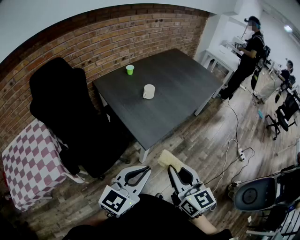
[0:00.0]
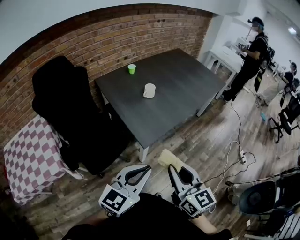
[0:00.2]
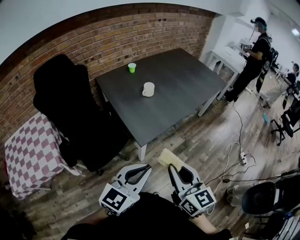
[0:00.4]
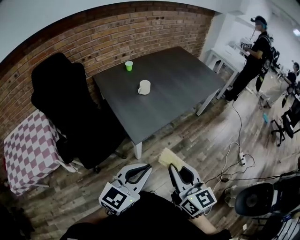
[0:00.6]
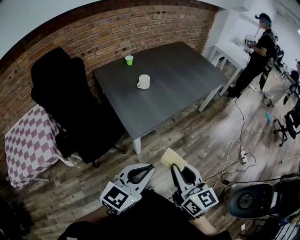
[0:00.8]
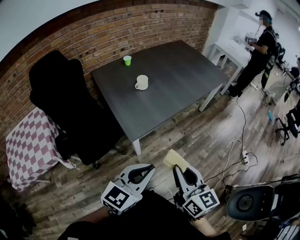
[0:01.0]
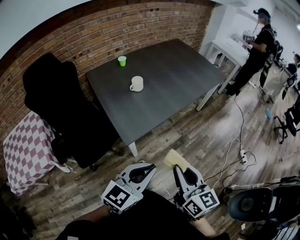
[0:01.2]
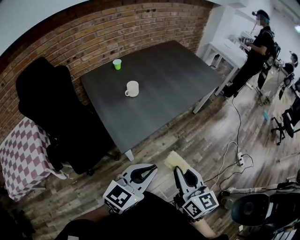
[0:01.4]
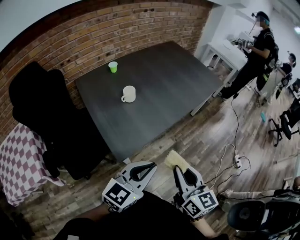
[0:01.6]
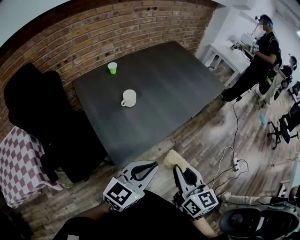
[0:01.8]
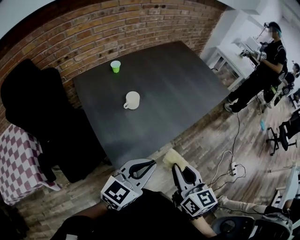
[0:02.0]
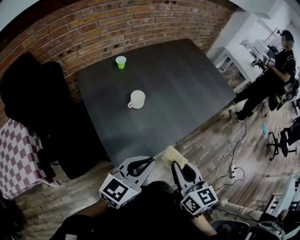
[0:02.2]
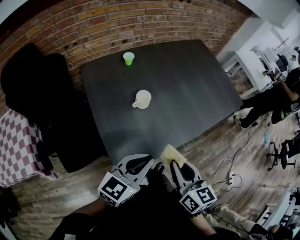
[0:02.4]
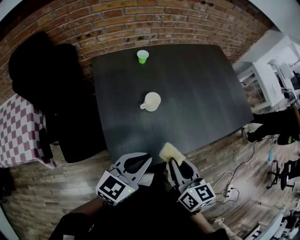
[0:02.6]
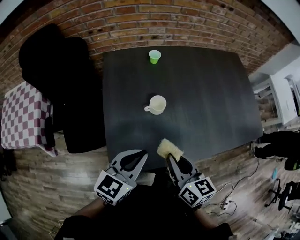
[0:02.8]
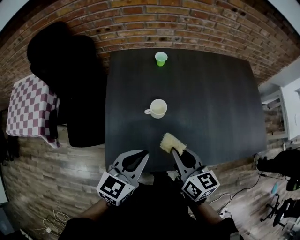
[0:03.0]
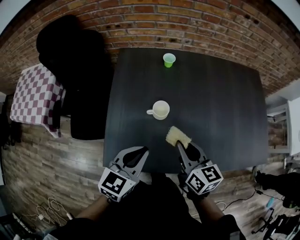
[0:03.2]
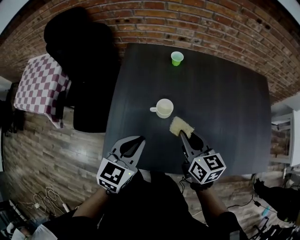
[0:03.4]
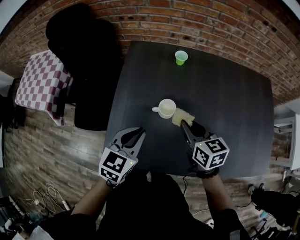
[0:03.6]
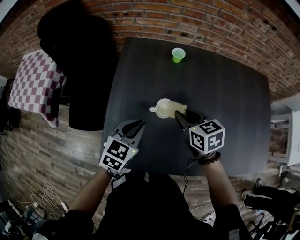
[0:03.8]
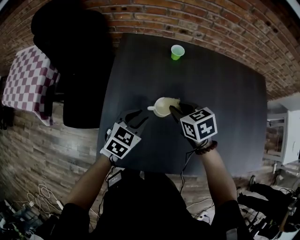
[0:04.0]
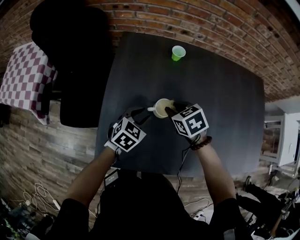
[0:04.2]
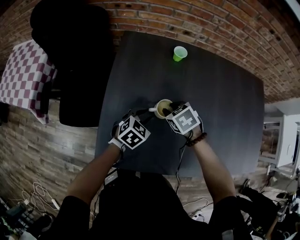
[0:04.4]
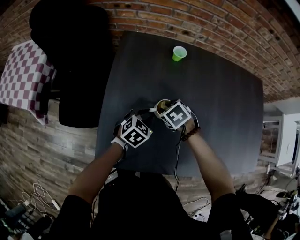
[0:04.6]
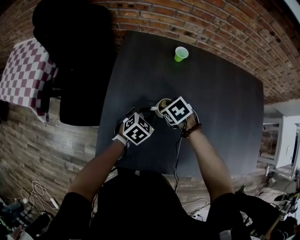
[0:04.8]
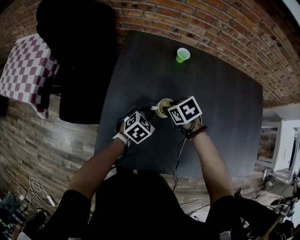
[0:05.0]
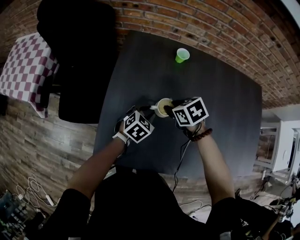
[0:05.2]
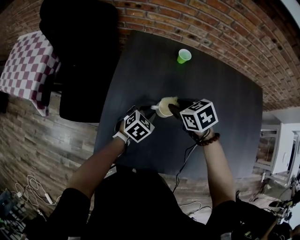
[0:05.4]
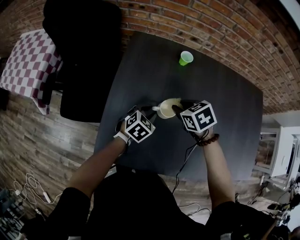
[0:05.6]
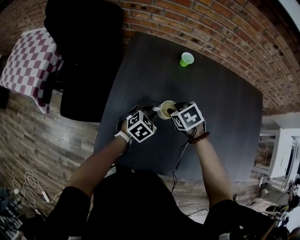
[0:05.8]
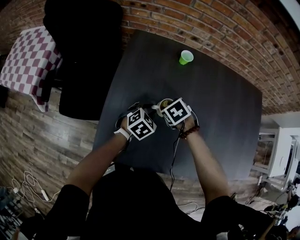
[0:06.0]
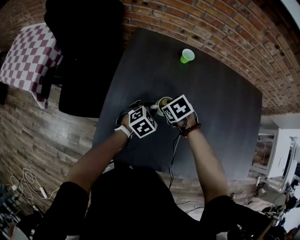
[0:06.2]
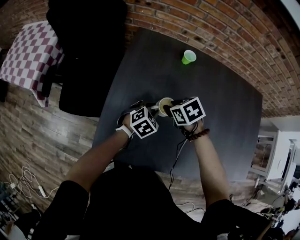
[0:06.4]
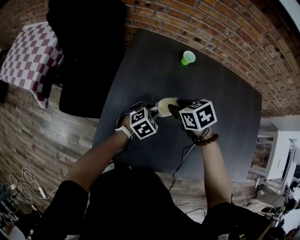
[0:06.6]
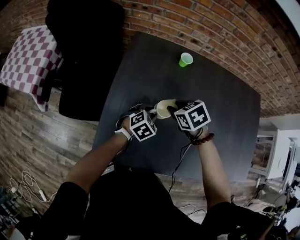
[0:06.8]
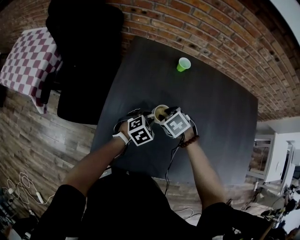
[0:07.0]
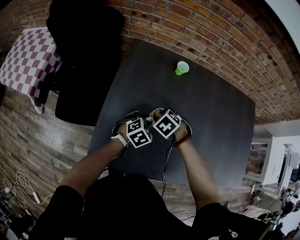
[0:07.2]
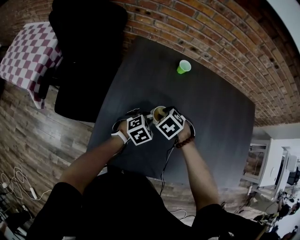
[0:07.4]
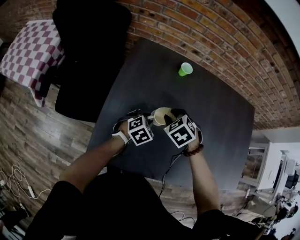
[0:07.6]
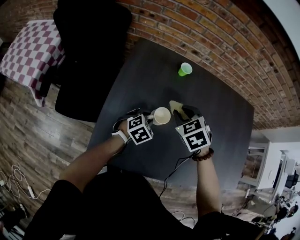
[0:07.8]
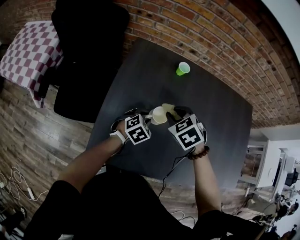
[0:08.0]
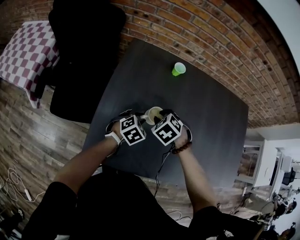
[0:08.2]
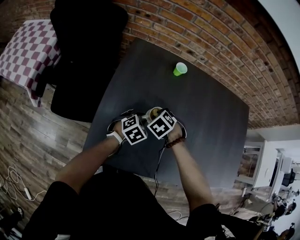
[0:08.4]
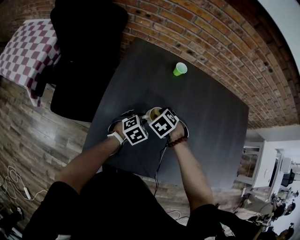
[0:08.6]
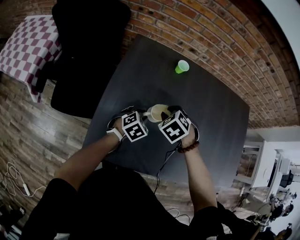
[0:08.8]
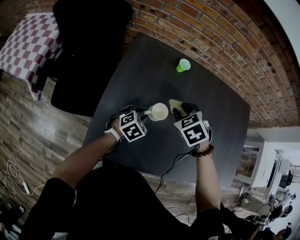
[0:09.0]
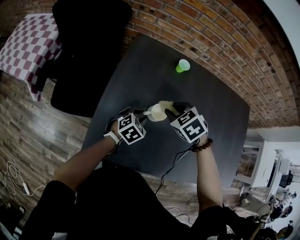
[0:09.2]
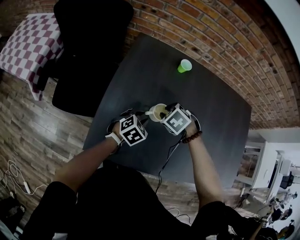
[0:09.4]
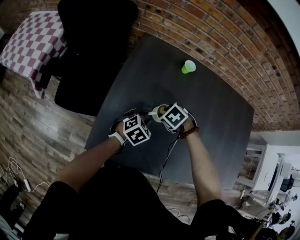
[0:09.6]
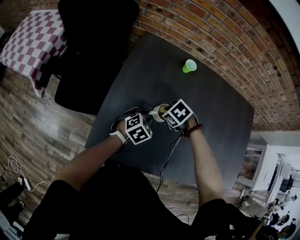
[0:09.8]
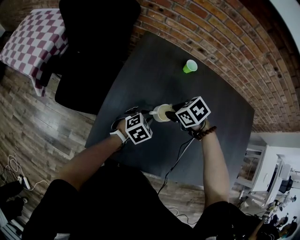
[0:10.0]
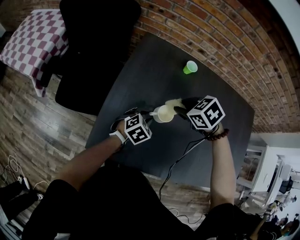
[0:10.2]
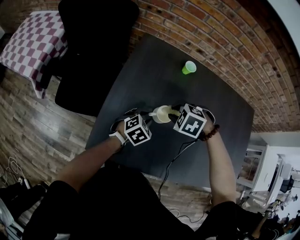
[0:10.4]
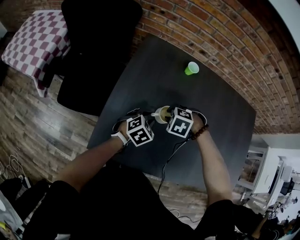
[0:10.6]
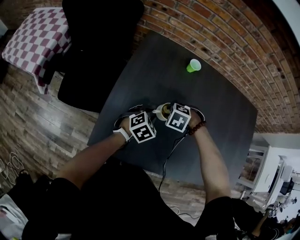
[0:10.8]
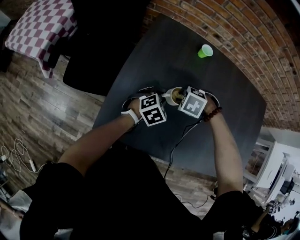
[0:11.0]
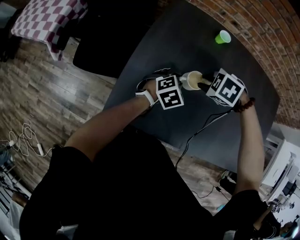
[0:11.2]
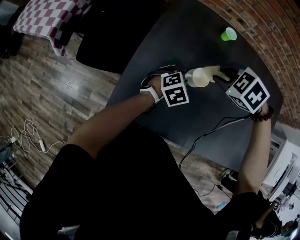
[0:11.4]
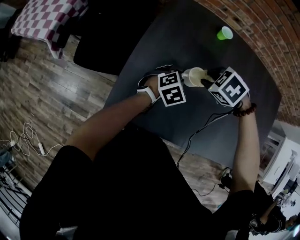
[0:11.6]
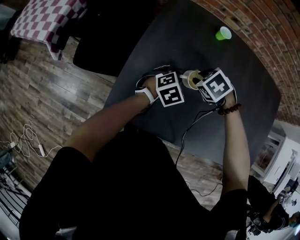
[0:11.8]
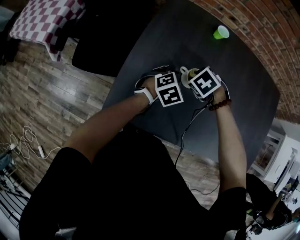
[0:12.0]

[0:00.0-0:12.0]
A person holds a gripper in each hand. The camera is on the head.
0:00.0 to 0:01.6: The right gripper moves to the right and forward, roughly 25 cm. Meanwhile the left gripper goes about 25 cm forward and to the right.
0:01.6 to 0:03.0: The right gripper shifts by roughly 40 cm, and turns by roughly 40 degrees. Meanwhile the left gripper ends up roughly 35 cm from where it was, and swivels about 40 degrees.
0:03.0 to 0:04.4: The left gripper travels downward and forward by roughly 25 cm, swivels roughly 30 degrees, and opens, while the right gripper heads forward and downward, covering some 25 cm, and points its fingers roughly 50 degrees further downward.
0:04.4 to 0:06.0: The right gripper goes upward and returns, some 5 cm each way.
0:06.0 to 0:07.6: The right gripper swings up and down, approximately 10 cm each way, with 2 reversals.
0:07.6 to 0:09.0: The right gripper moves up and down over roughly 15 cm, changing direction 2 times.
0:09.0 to 0:10.4: The right gripper moves up and down over about 15 cm, changing direction 2 times, and rotates about 40 degrees.
0:10.4 to 0:12.0: The right gripper goes up and down, about 10 cm each way, reversing 2 times, and changes its angle by some 30 degrees.

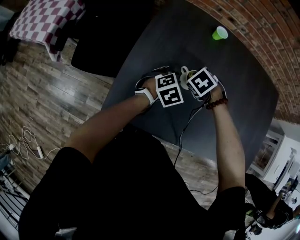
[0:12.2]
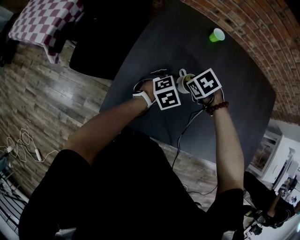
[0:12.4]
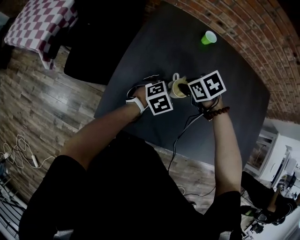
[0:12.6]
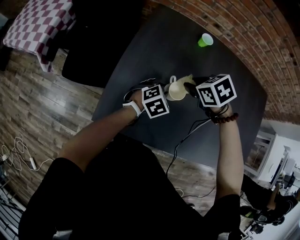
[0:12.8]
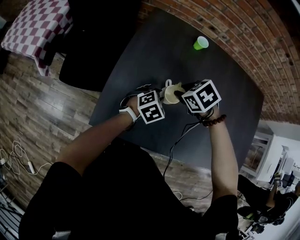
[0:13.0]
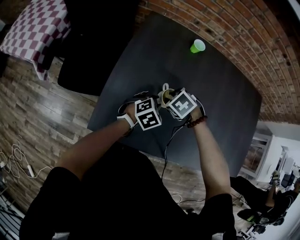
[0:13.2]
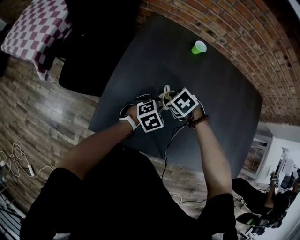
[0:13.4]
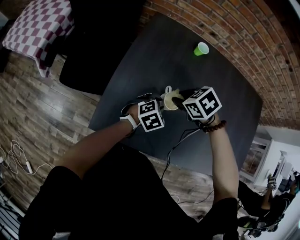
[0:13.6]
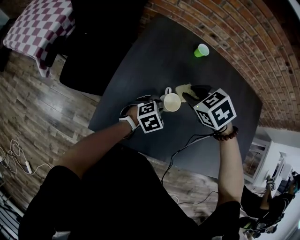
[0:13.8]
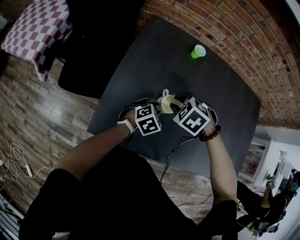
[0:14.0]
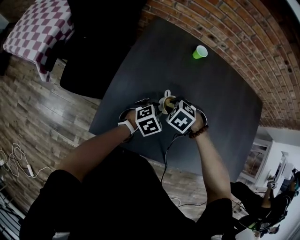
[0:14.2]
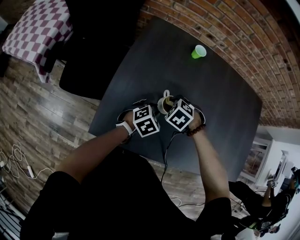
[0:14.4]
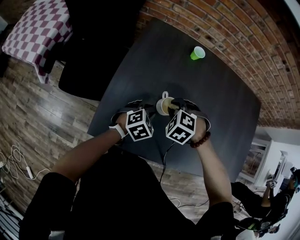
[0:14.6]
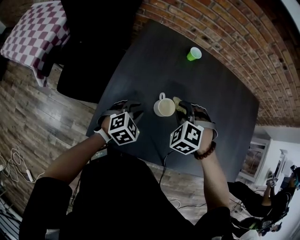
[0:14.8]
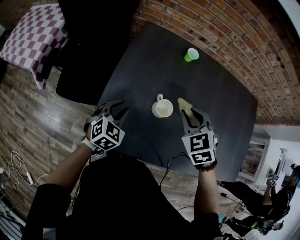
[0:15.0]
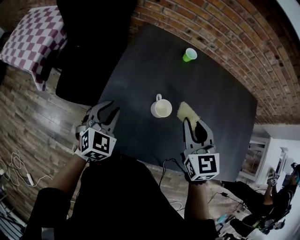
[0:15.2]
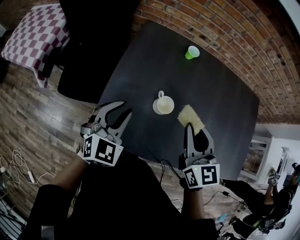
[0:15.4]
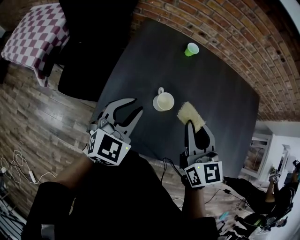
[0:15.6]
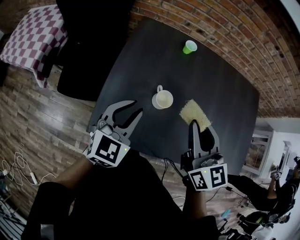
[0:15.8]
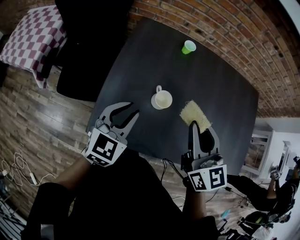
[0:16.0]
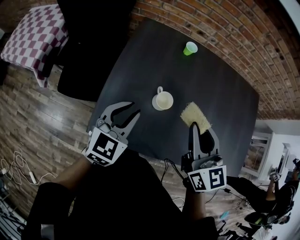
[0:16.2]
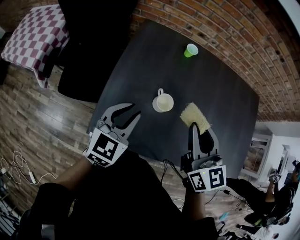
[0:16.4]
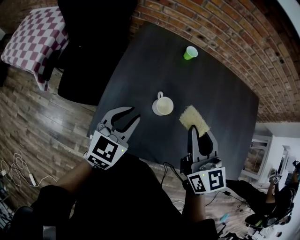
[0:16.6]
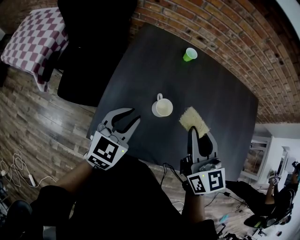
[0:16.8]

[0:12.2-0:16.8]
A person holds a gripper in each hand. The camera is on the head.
0:12.2 to 0:13.8: The right gripper swings up and down, about 15 cm each way, with 2 reversals.
0:13.8 to 0:15.2: The left gripper moves about 20 cm, and turns by approximately 30 degrees, while the right gripper goes downward and returns, approximately 15 cm each way, and tips its fingers upward by some 40 degrees.
0:15.2 to 0:16.8: The right gripper goes some 5 cm upward, and swivels some 20 degrees. The left gripper travels to the right and upward by some 10 cm, and turns by approximately 20 degrees.

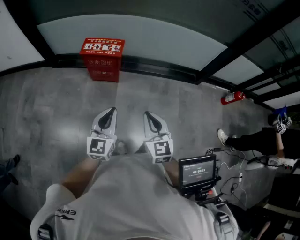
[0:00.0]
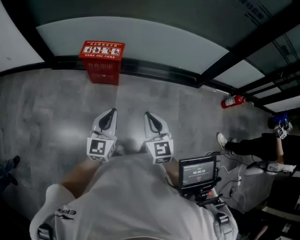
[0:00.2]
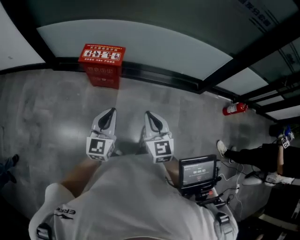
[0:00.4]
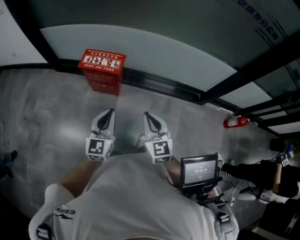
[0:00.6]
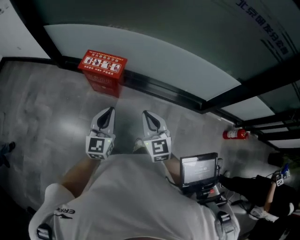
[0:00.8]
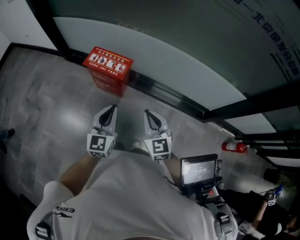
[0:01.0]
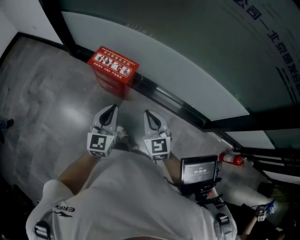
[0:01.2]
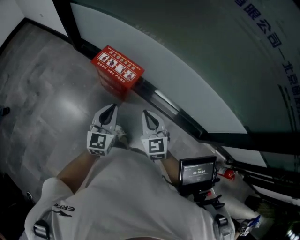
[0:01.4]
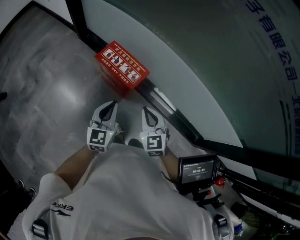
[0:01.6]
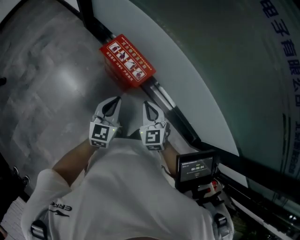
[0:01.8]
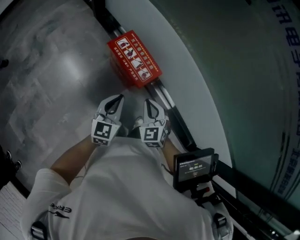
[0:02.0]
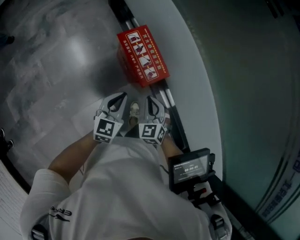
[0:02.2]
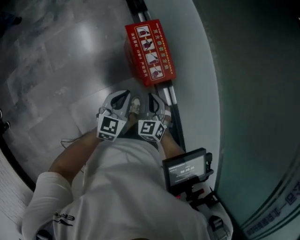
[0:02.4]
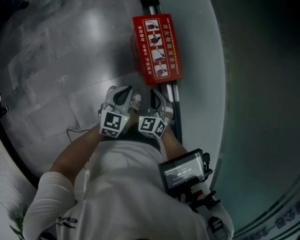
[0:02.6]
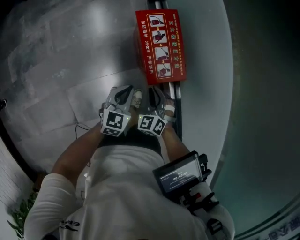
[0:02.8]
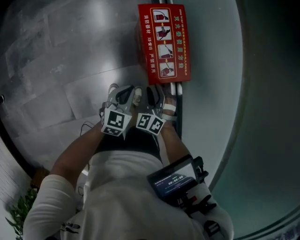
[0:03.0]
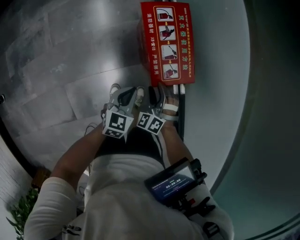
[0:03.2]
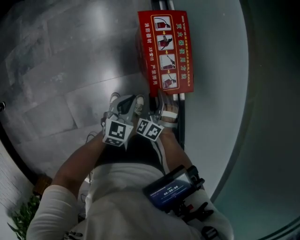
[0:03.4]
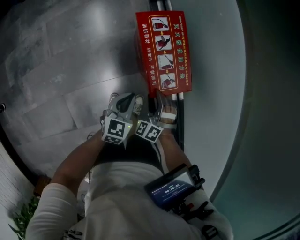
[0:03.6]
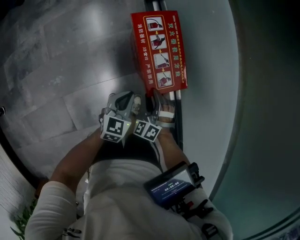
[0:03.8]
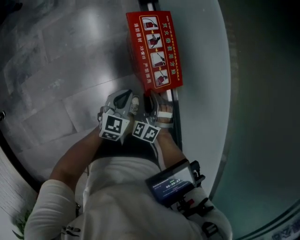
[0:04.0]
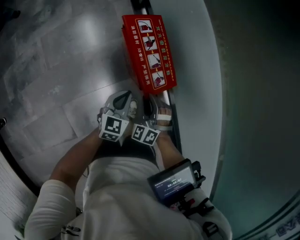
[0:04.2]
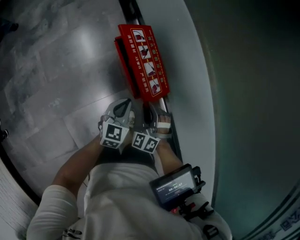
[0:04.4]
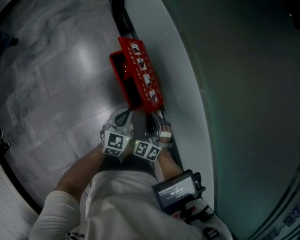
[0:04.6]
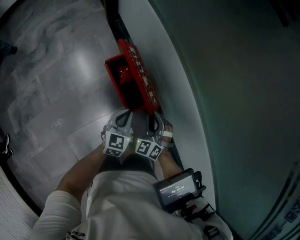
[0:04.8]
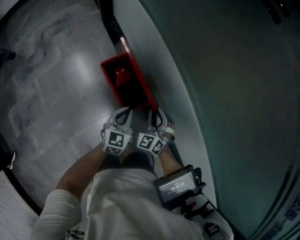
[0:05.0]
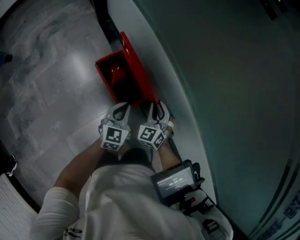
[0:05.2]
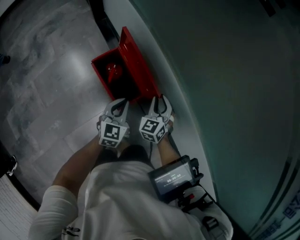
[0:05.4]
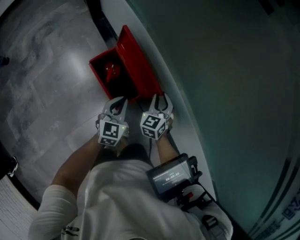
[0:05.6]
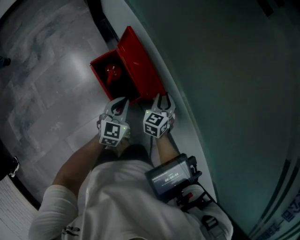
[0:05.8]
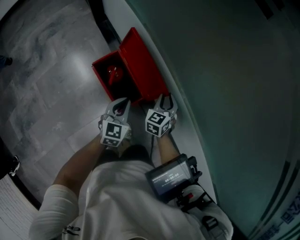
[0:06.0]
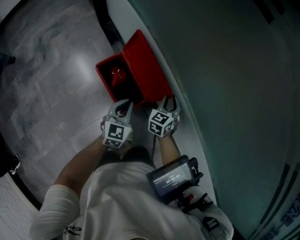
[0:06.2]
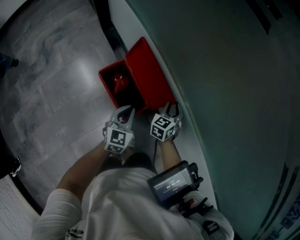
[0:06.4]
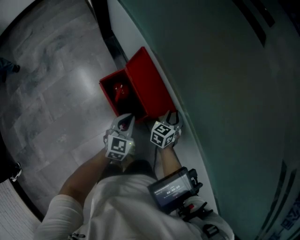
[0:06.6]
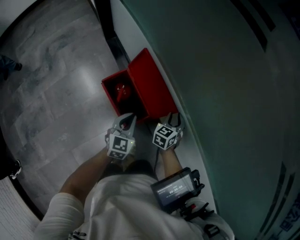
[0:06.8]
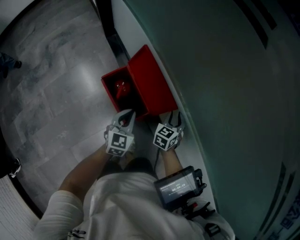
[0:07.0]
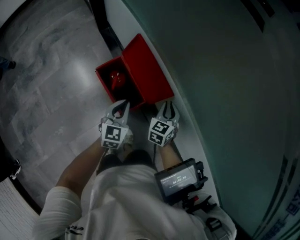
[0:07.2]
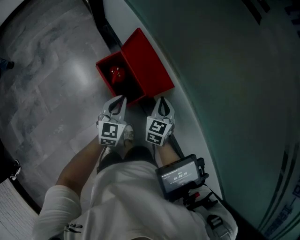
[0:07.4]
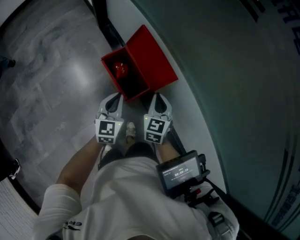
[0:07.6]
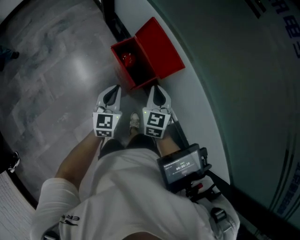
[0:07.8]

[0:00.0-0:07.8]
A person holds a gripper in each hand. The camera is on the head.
0:00.0 to 0:01.6: The left gripper moves about 35 cm, and changes its angle by roughly 30 degrees; the right gripper ends up some 40 cm from where it was, and changes its angle by some 40 degrees.
0:01.6 to 0:03.2: The left gripper goes about 30 cm downward, and turns by roughly 40 degrees; the right gripper shifts about 35 cm downward and forward, twists approximately 60 degrees counterclockwise, seen from behind, and opens up.
0:03.2 to 0:04.6: The two grippers go about 10 cm upward. The right gripper closes up.
0:04.6 to 0:06.2: The left gripper moves forward, some 10 cm. The right gripper moves forward and to the right, about 20 cm, and rolls clockwise, seen from behind, by some 40 degrees.
0:06.2 to 0:07.8: The left gripper shifts about 15 cm backward, to the left and upward; the right gripper travels backward, upward and to the left by approximately 25 cm, rotates some 20 degrees, and closes up.
